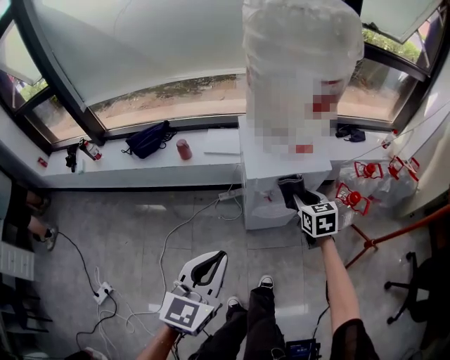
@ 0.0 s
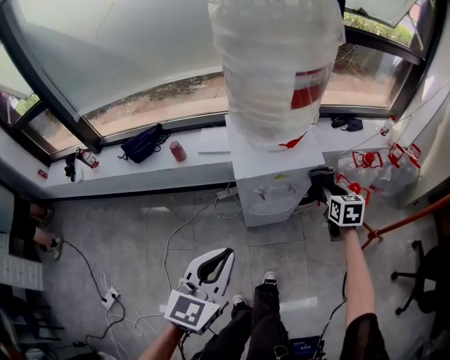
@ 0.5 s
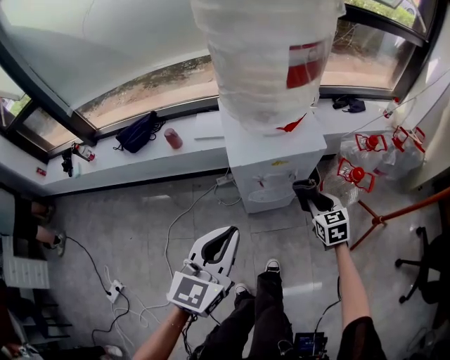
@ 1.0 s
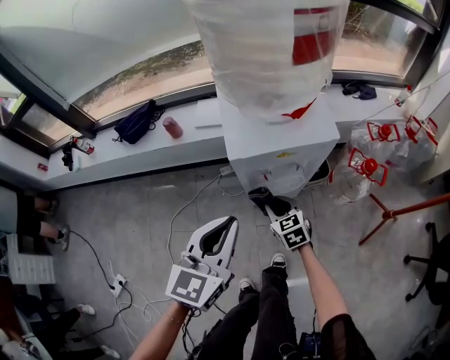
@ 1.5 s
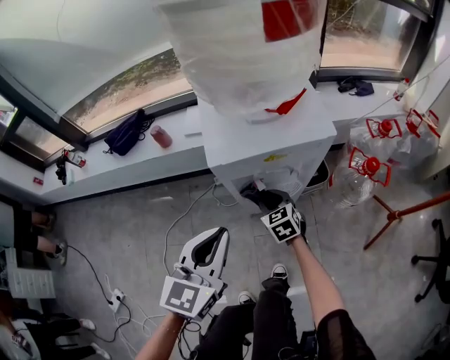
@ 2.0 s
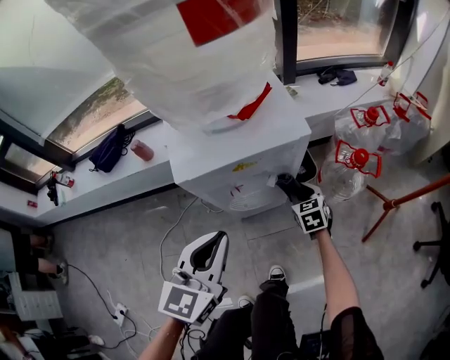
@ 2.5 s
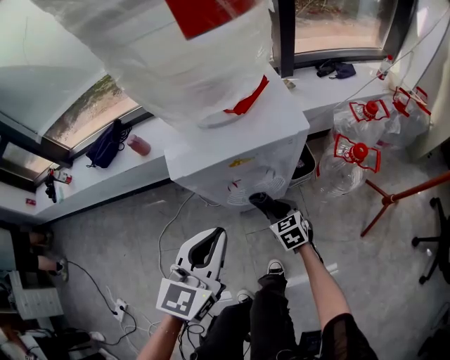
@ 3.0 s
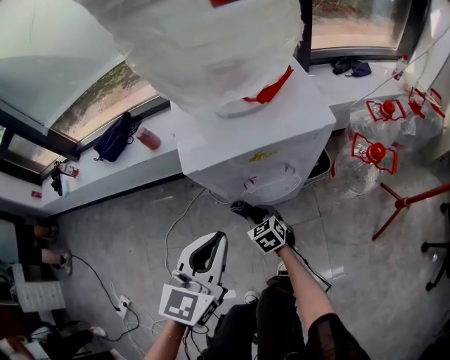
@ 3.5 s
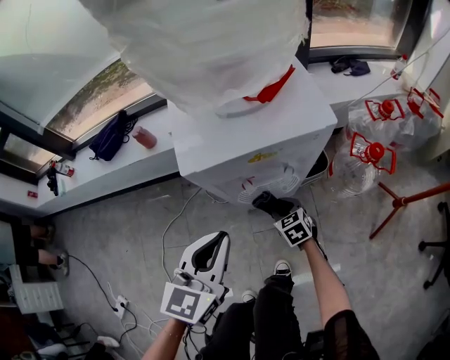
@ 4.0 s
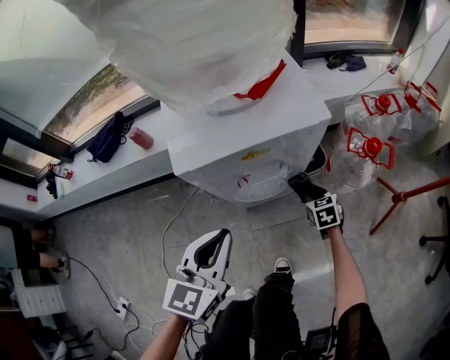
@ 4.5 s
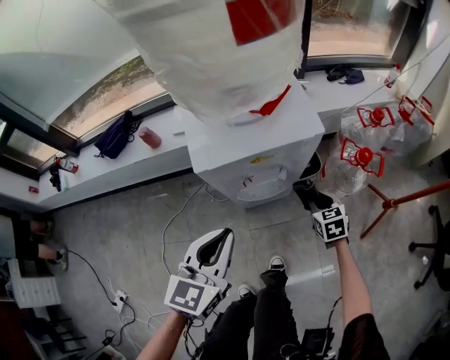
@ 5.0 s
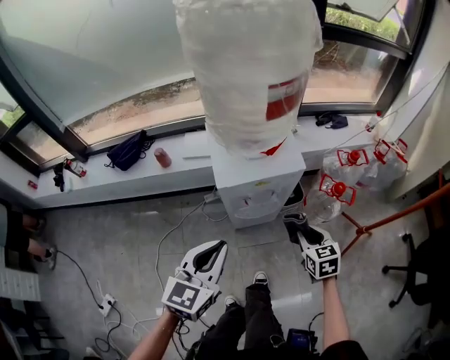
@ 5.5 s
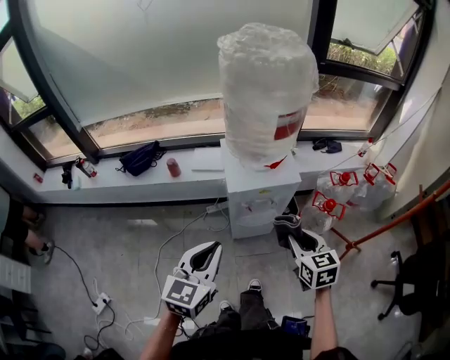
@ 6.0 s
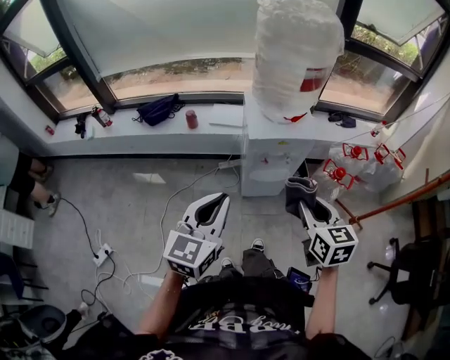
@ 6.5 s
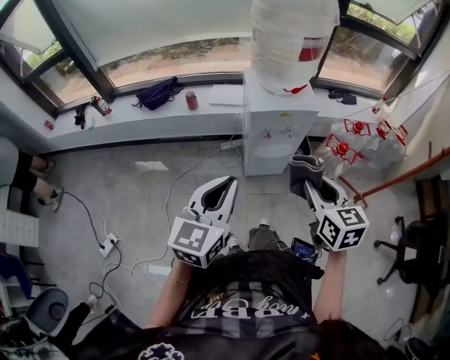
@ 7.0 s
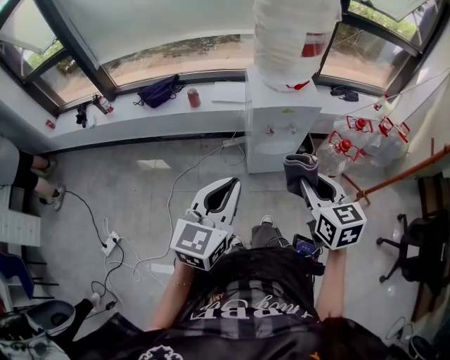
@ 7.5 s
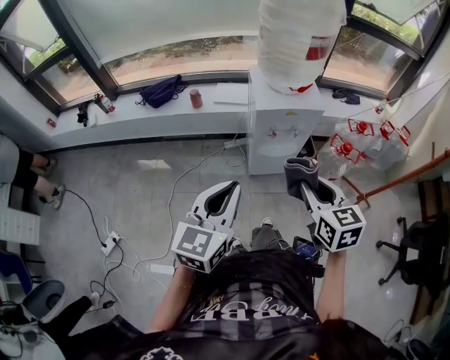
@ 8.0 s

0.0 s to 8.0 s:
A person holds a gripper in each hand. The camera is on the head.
0.0 to 2.0 s: The left gripper moves downward, forward and to the right, some 20 cm, while the right gripper shifts roughly 25 cm downward.
2.0 to 4.0 s: The right gripper goes left and right, approximately 20 cm each way, reversing 2 times. Meanwhile the left gripper heads downward, covering roughly 5 cm.
4.0 to 6.0 s: The right gripper goes about 50 cm upward. The left gripper moves upward and backward, some 30 cm.
6.0 to 8.0 s: The right gripper is displaced backward and to the left by some 15 cm. Meanwhile the left gripper travels backward by roughly 15 cm.

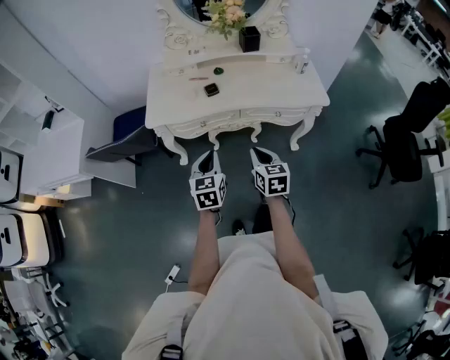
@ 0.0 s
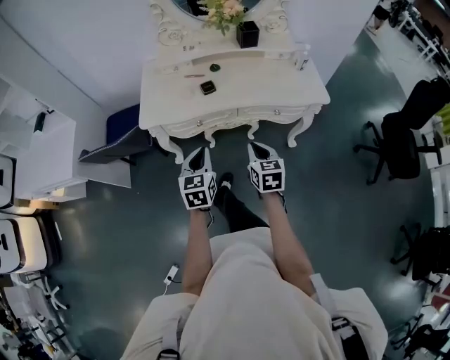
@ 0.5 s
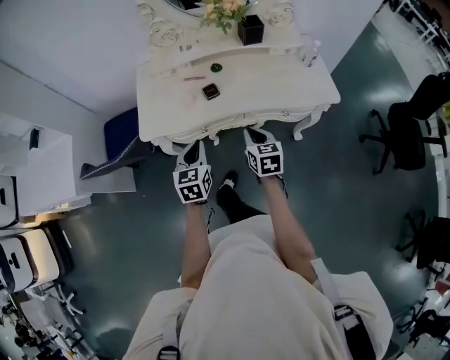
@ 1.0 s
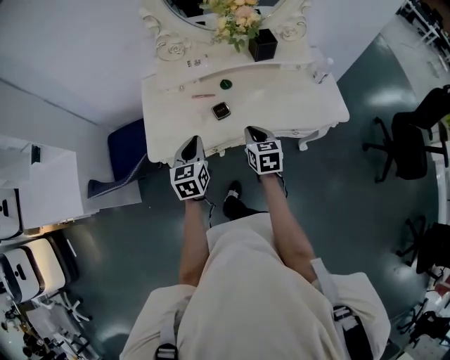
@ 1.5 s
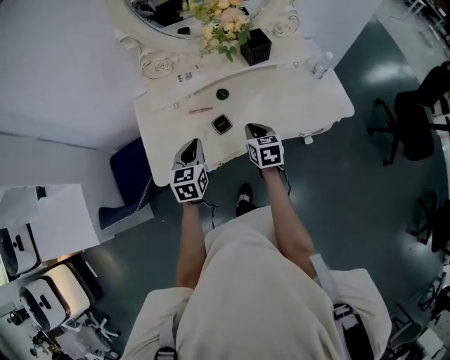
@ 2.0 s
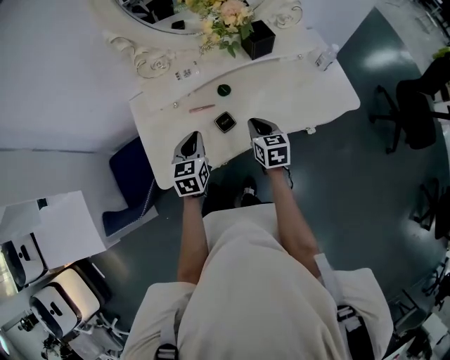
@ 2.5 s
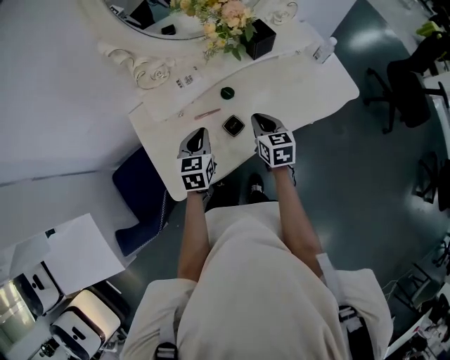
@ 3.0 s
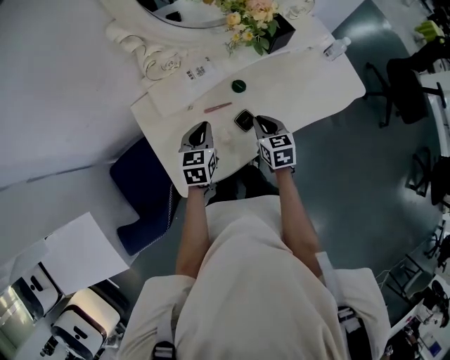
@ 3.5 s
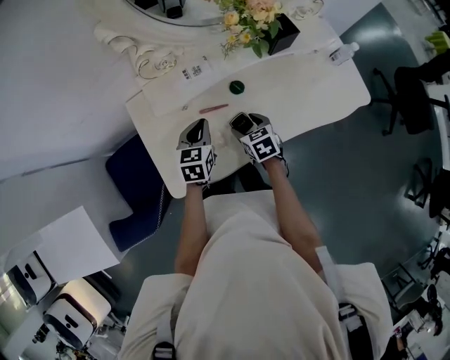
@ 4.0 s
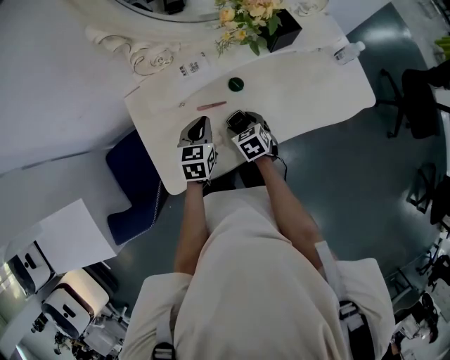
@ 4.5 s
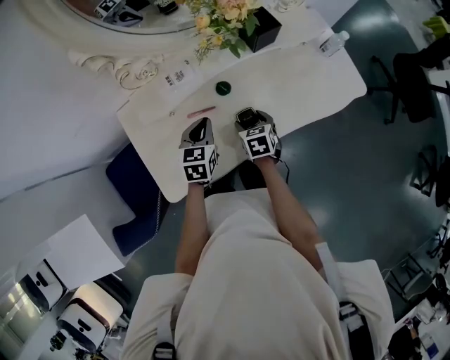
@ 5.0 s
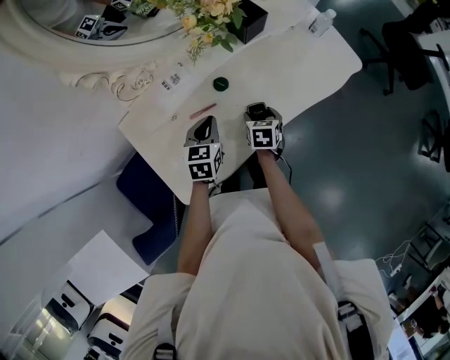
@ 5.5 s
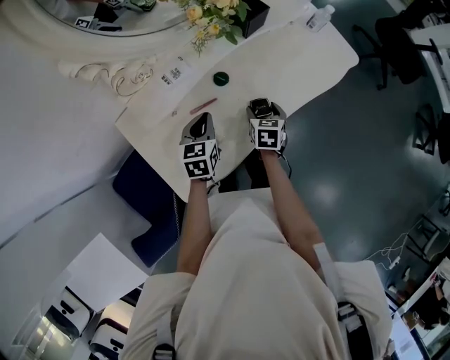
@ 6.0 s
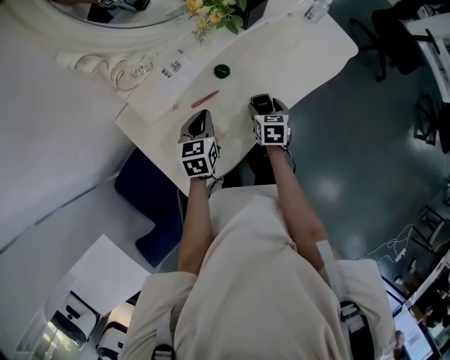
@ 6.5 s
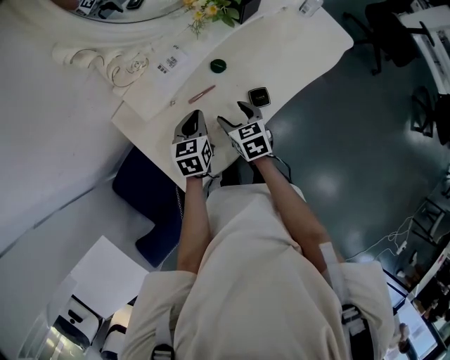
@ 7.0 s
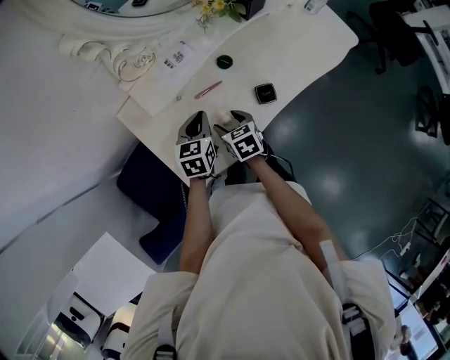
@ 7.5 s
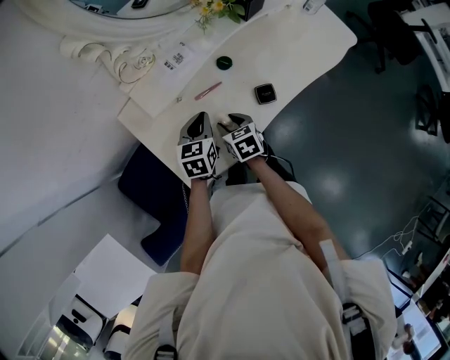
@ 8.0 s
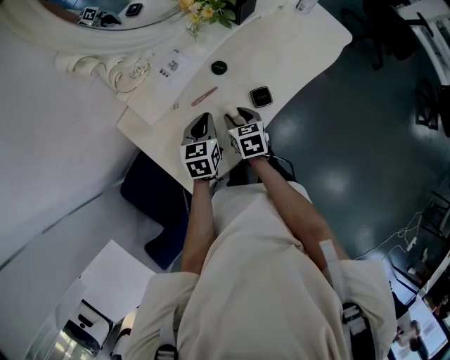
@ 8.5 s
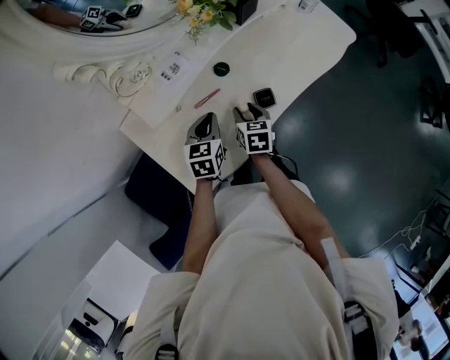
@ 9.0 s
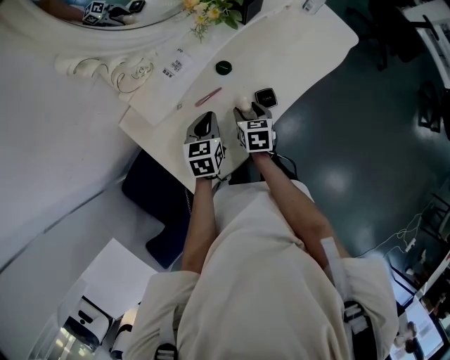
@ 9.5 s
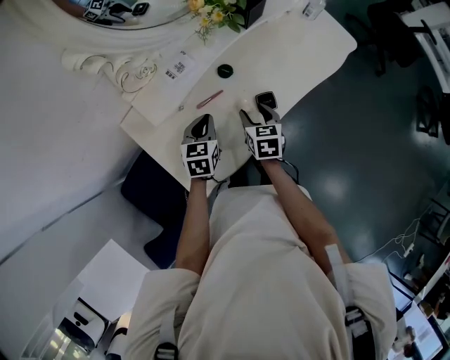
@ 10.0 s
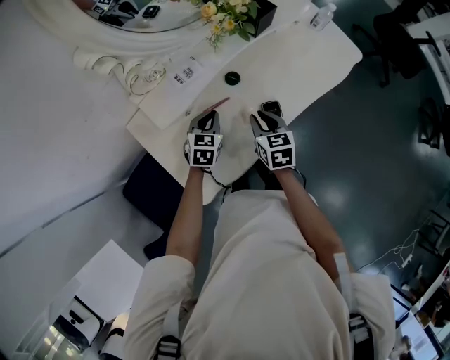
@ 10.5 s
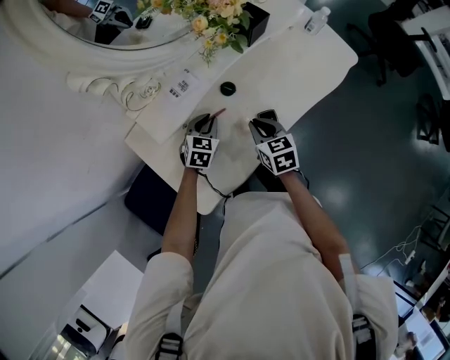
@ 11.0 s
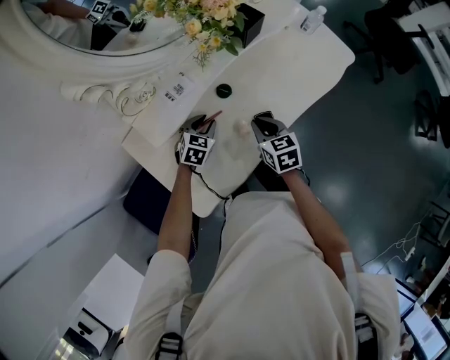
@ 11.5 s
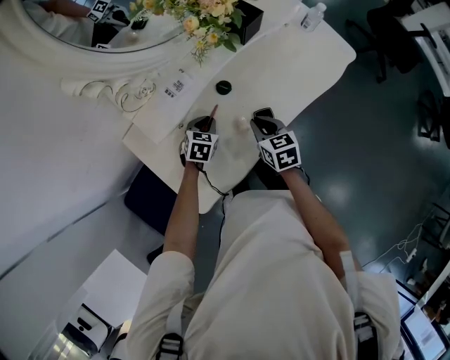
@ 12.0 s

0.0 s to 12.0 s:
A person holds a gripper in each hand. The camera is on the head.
0.0 to 2.0 s: The grippers both shift forward by approximately 35 cm.
2.0 to 4.0 s: The right gripper goes about 15 cm to the left, downward and forward, and opens its fingers, while the left gripper travels forward and downward by roughly 15 cm.
4.0 to 6.0 s: The right gripper shifts by approximately 10 cm, and swivels approximately 40 degrees.
6.0 to 8.0 s: The right gripper heads to the left and backward, covering some 20 cm, and changes its angle by approximately 20 degrees. The left gripper changes place by roughly 5 cm.
8.0 to 10.0 s: The right gripper heads to the right and forward, covering approximately 10 cm, and changes its angle by approximately 20 degrees.
10.0 to 12.0 s: The left gripper moves downward and forward, roughly 10 cm, and swivels roughly 20 degrees; the right gripper closes up.

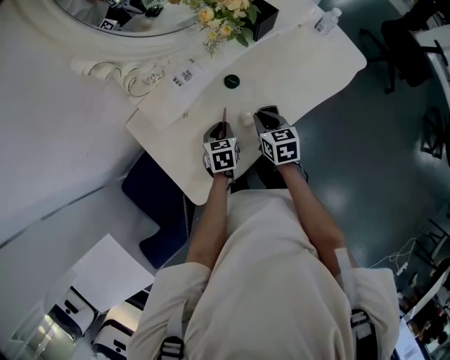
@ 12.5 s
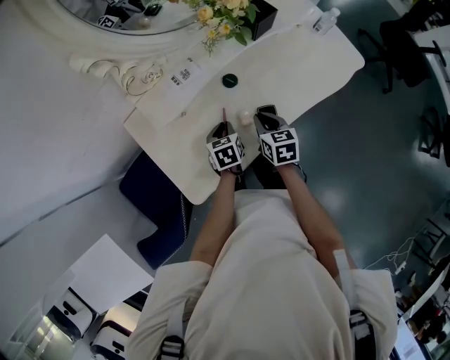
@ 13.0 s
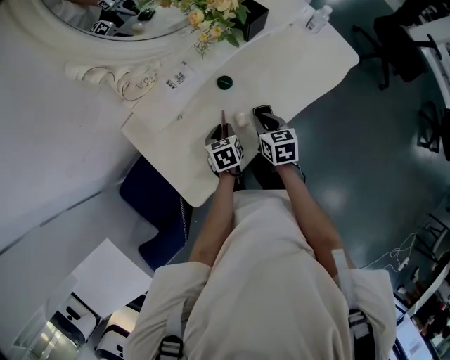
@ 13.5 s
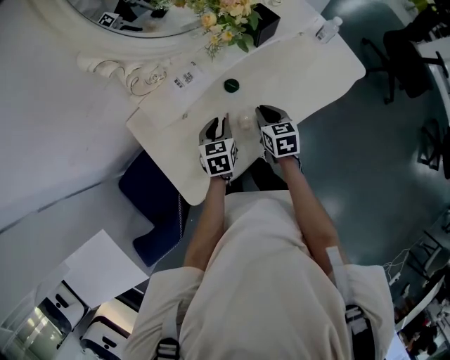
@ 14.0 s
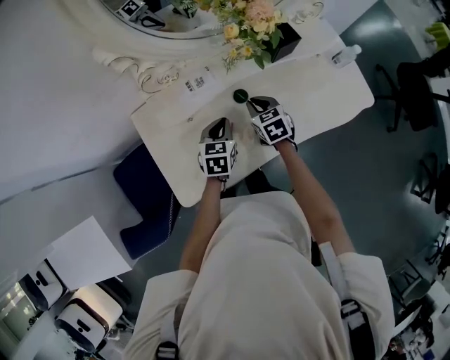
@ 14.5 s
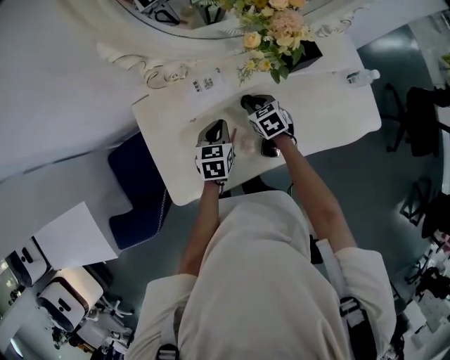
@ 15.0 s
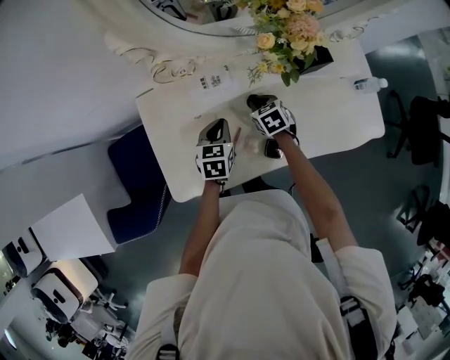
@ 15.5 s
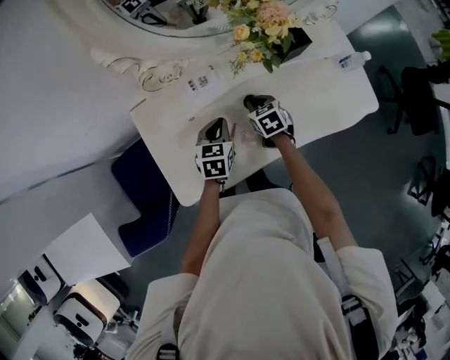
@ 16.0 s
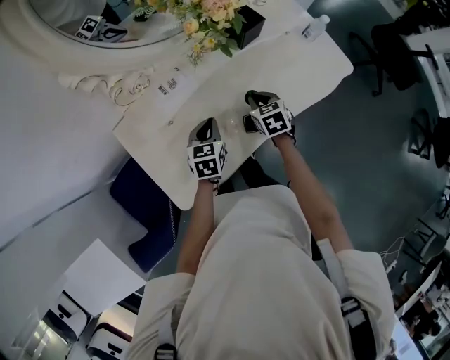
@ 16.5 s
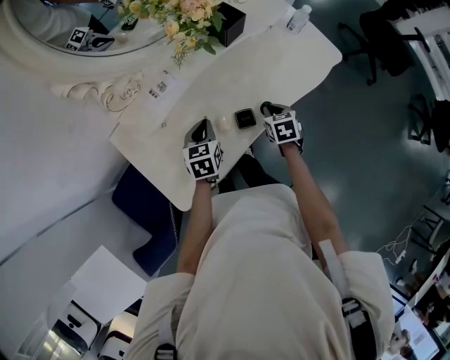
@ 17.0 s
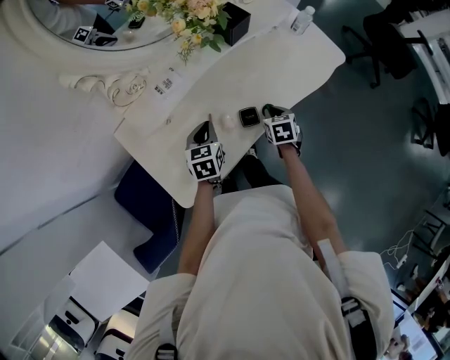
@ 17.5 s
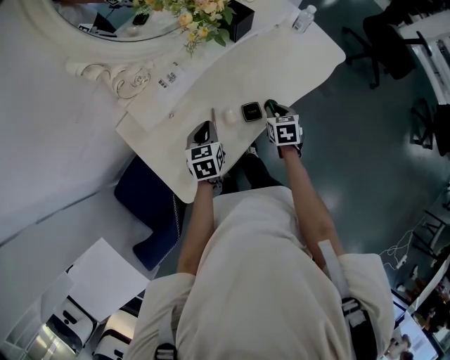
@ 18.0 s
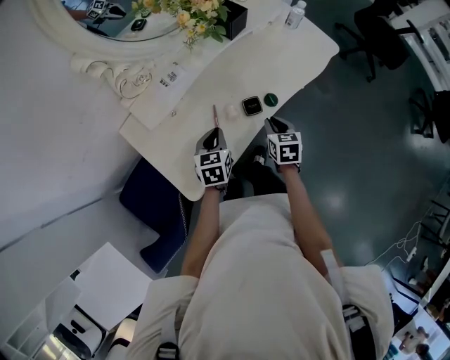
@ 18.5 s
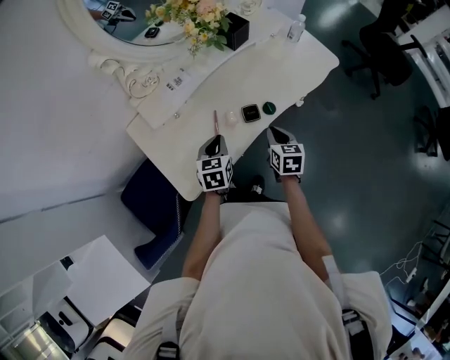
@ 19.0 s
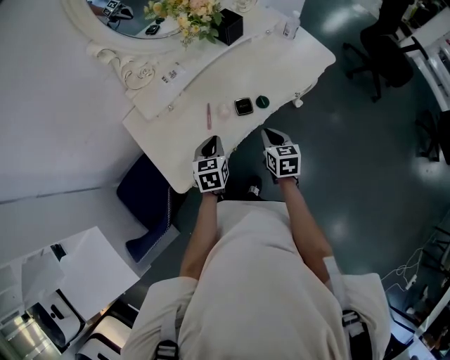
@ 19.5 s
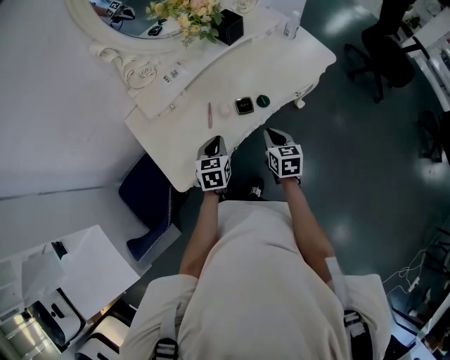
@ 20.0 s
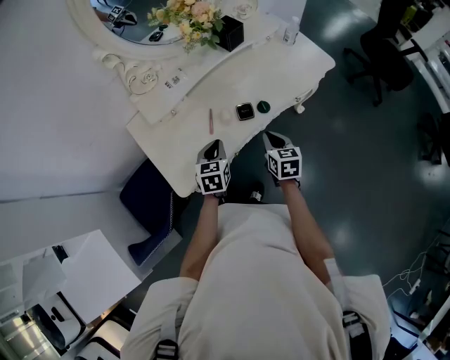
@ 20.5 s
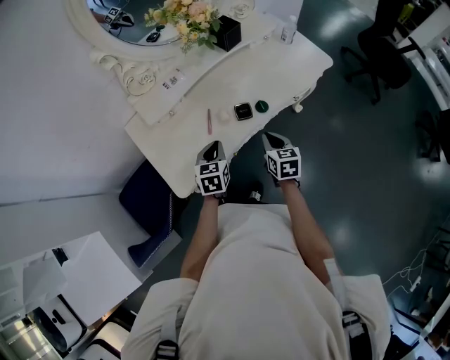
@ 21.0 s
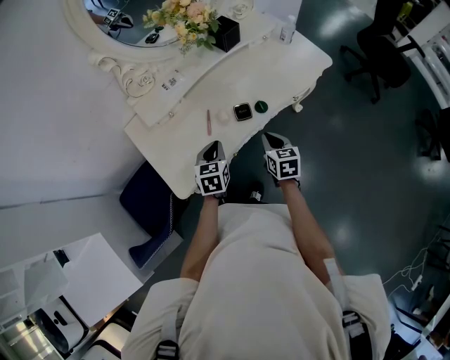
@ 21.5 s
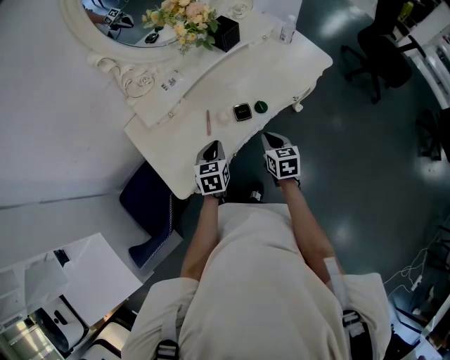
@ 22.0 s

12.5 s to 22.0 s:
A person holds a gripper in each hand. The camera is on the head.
12.5 to 14.5 s: The left gripper is displaced upward and forward by roughly 10 cm, while the right gripper moves forward, approximately 10 cm, and swivels about 30 degrees.
14.5 to 16.5 s: The right gripper travels to the right by roughly 5 cm.
16.5 to 18.0 s: The right gripper moves backward and to the right, some 10 cm. The left gripper shifts roughly 5 cm backward.
18.0 to 20.0 s: The left gripper shifts roughly 15 cm backward and to the right; the right gripper heads backward, covering roughly 15 cm.
20.0 to 22.0 s: Both grippers stay about where they are.
